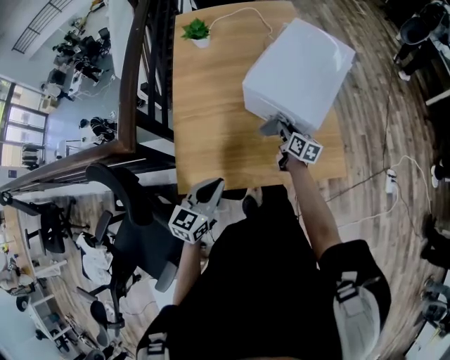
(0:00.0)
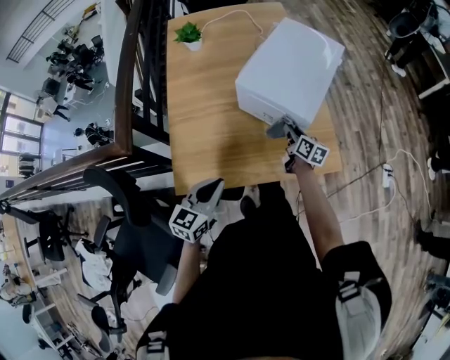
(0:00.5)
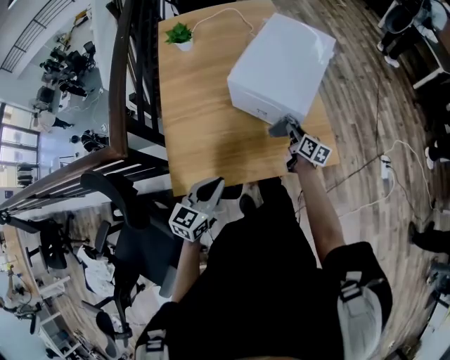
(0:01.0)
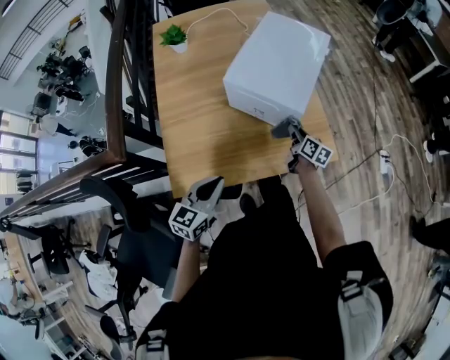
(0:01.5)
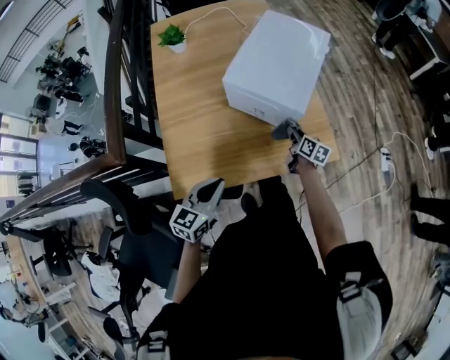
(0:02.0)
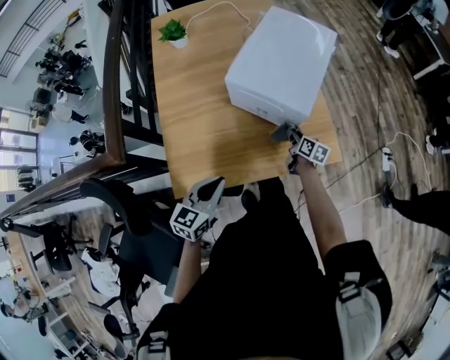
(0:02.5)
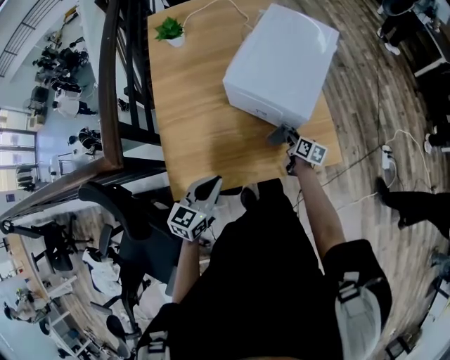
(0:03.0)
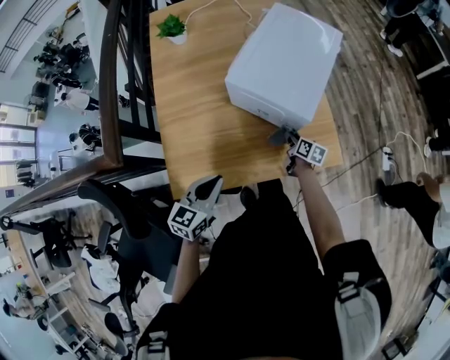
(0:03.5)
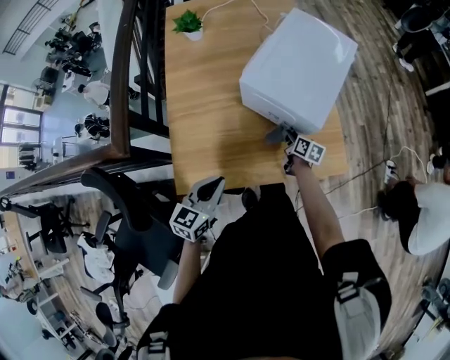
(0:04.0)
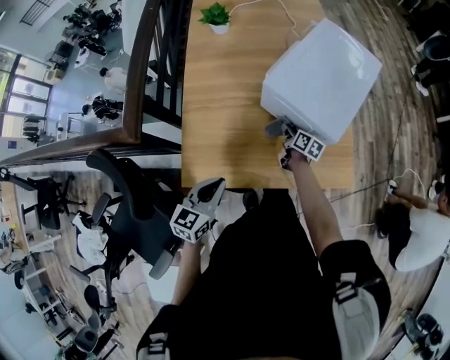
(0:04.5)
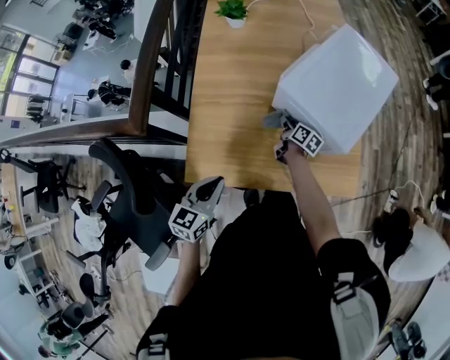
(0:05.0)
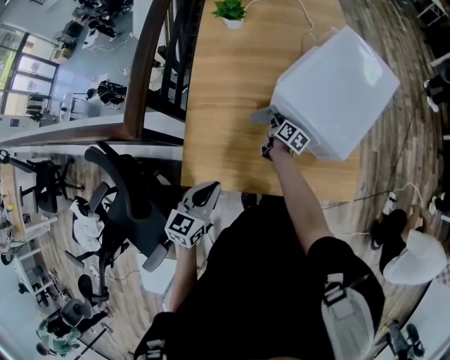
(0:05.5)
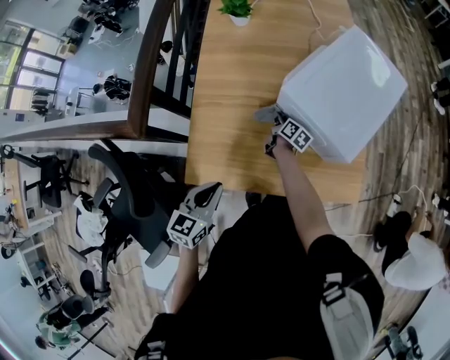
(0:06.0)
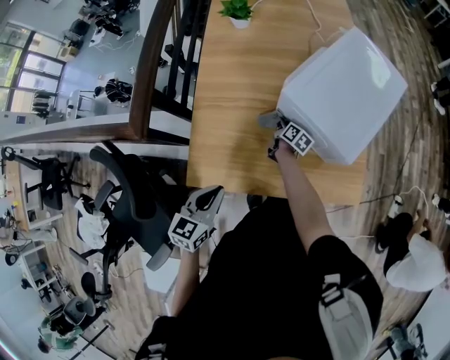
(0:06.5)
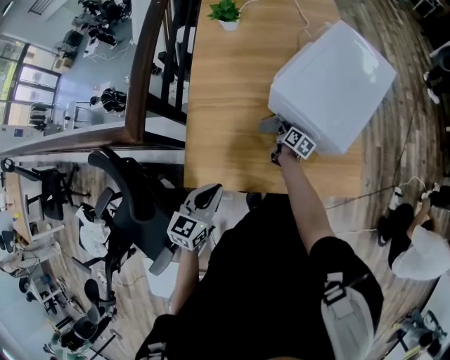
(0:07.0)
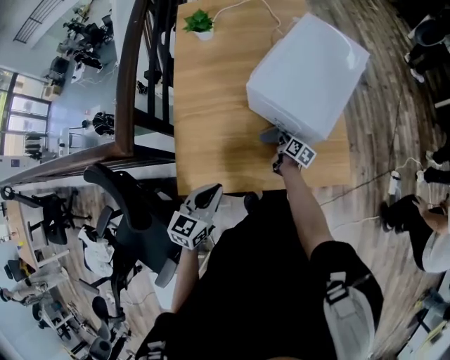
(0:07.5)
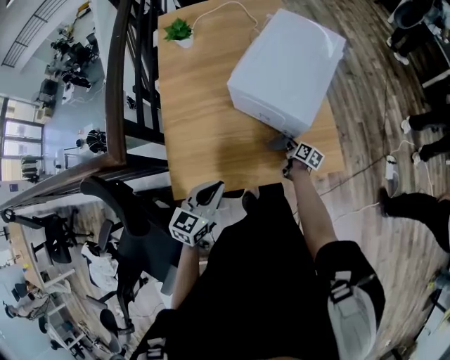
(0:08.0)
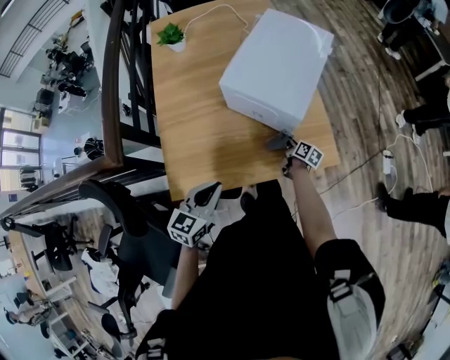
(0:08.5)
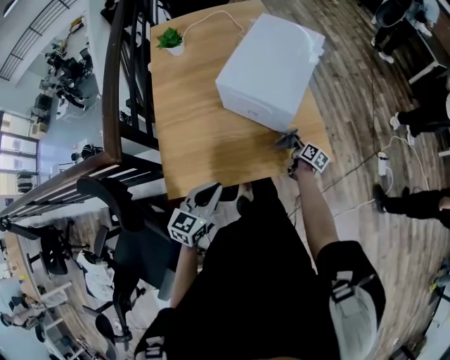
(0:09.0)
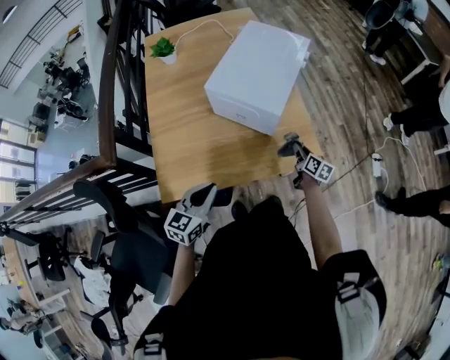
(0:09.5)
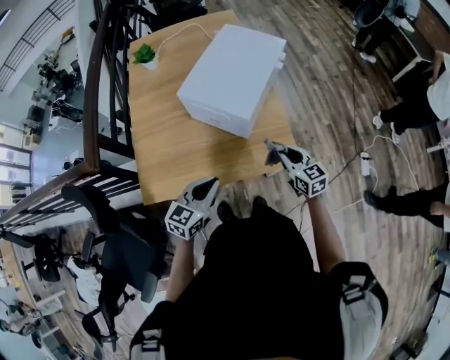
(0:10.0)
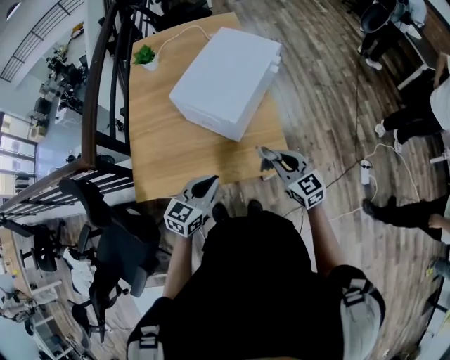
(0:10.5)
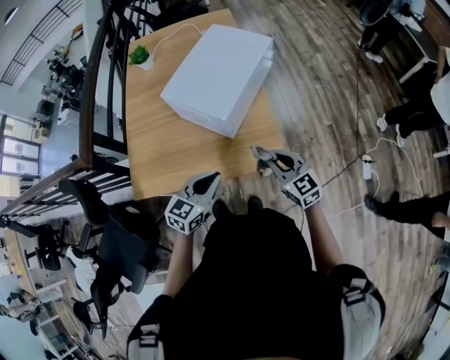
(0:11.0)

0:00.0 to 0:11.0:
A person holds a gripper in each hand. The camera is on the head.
0:00.0 to 0:02.0: The right gripper is displaced to the right by about 10 cm.
0:02.0 to 0:03.5: The right gripper is displaced downward by about 5 cm.
0:03.5 to 0:05.5: The left gripper goes some 5 cm to the left; the right gripper moves to the left and forward, roughly 25 cm.
0:05.5 to 0:07.5: The right gripper moves to the right and backward, about 15 cm.
0:07.5 to 0:09.0: The right gripper is displaced to the right by approximately 15 cm. The left gripper moves to the right, some 5 cm.
0:09.0 to 0:11.0: The left gripper heads to the right, covering some 25 cm; the right gripper shifts some 25 cm upward and backward, and twists some 60 degrees counterclockwise, seen from behind.

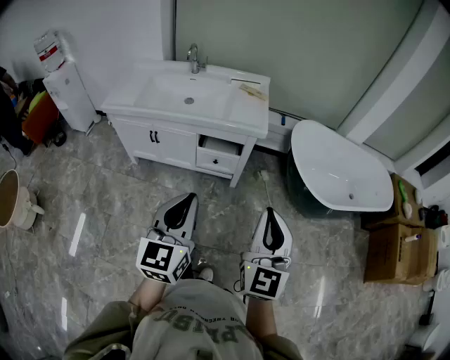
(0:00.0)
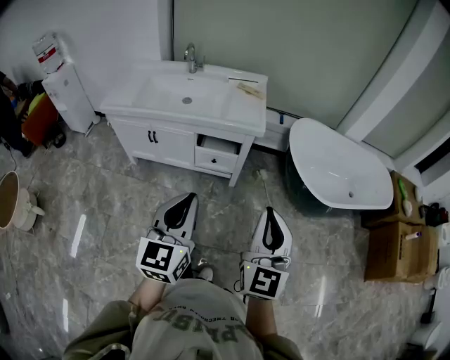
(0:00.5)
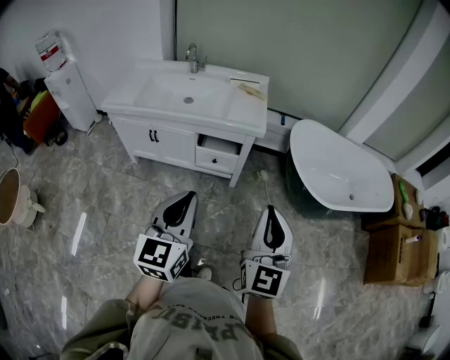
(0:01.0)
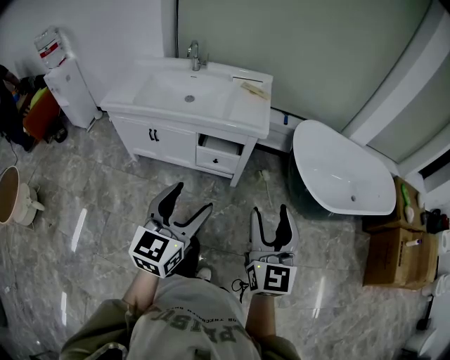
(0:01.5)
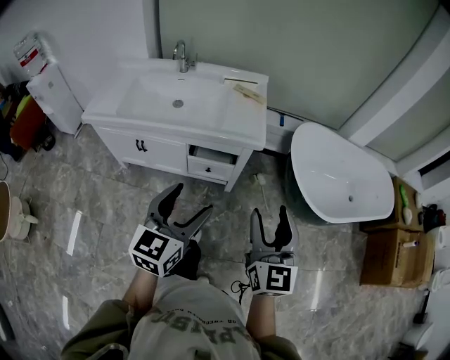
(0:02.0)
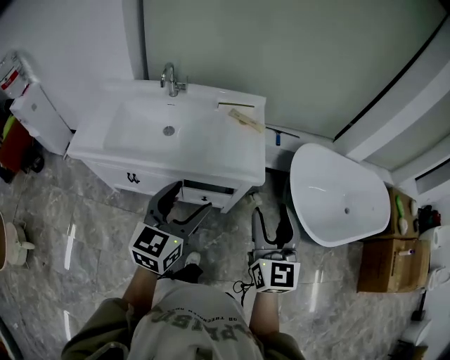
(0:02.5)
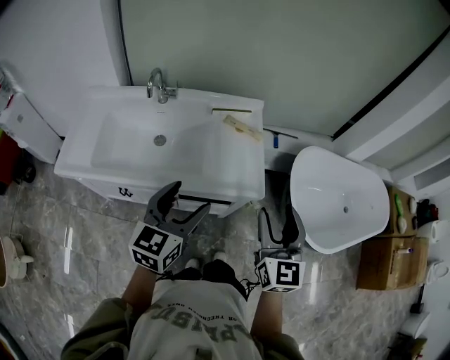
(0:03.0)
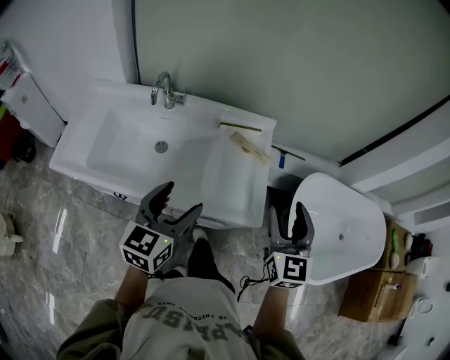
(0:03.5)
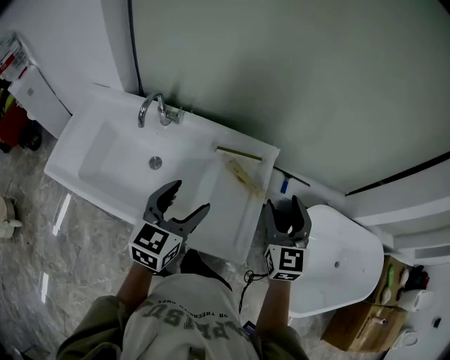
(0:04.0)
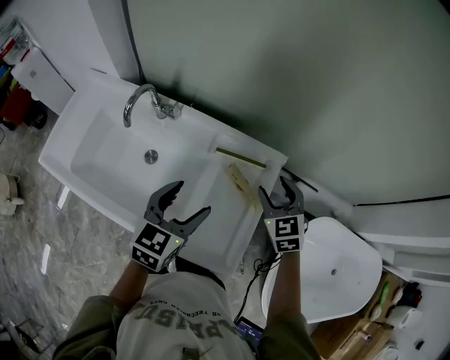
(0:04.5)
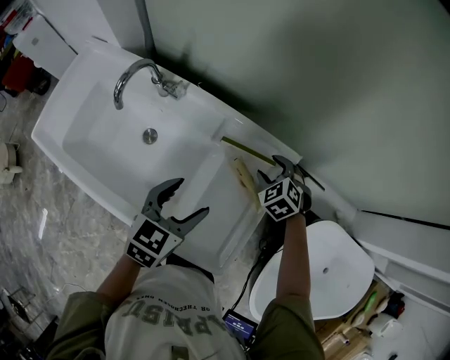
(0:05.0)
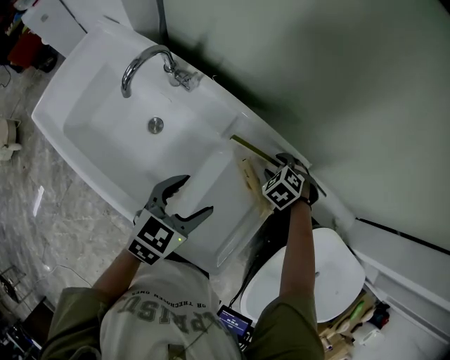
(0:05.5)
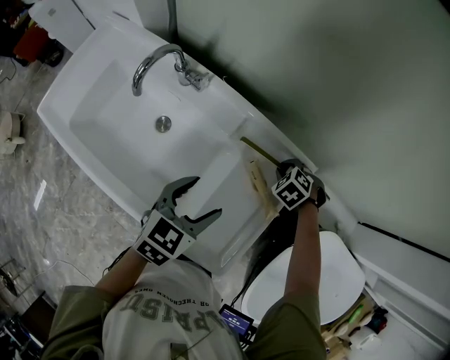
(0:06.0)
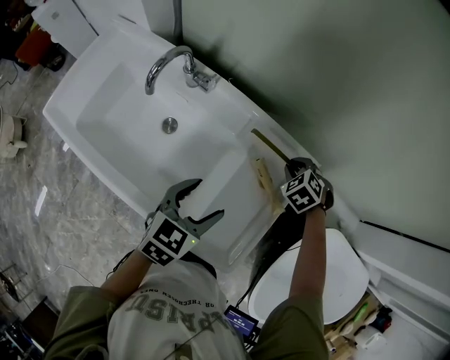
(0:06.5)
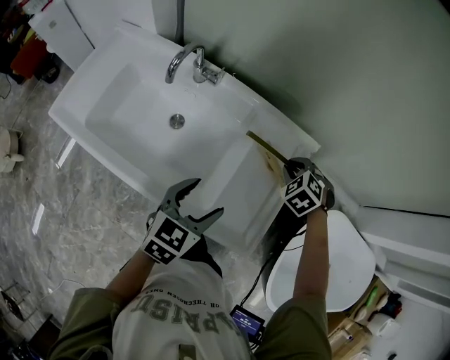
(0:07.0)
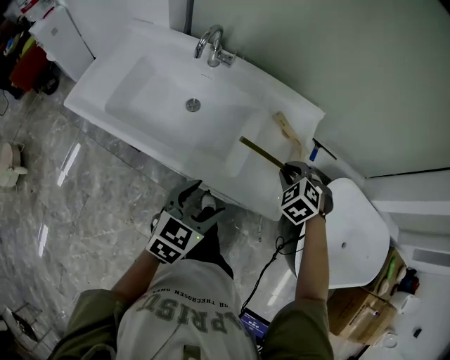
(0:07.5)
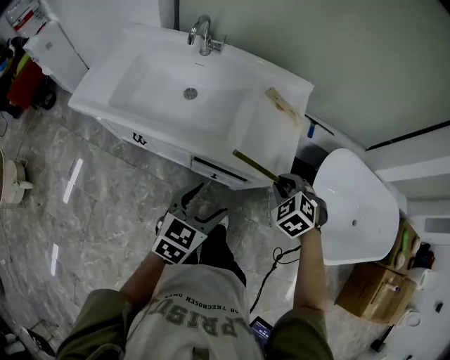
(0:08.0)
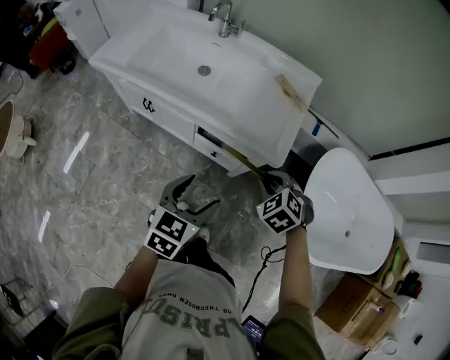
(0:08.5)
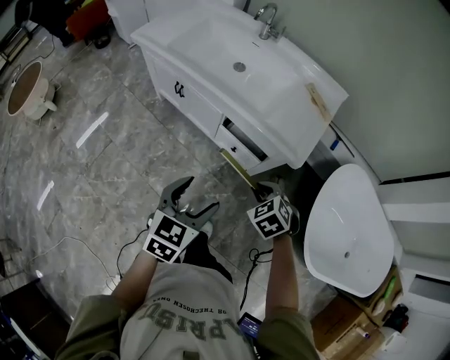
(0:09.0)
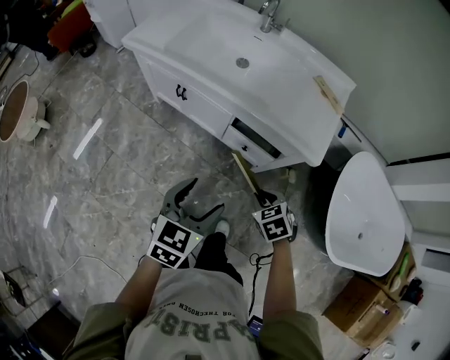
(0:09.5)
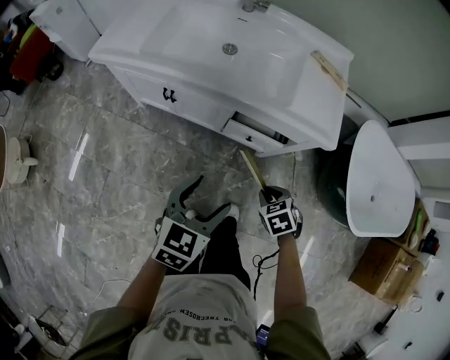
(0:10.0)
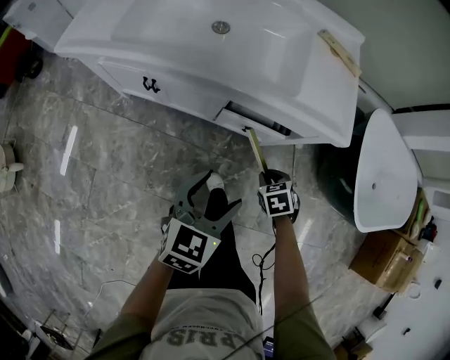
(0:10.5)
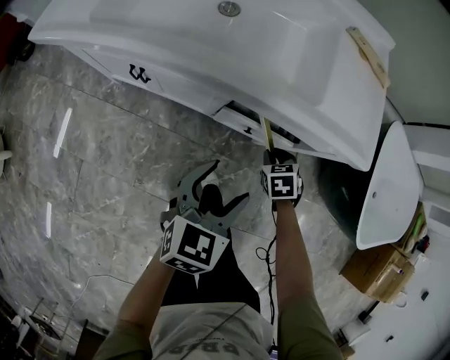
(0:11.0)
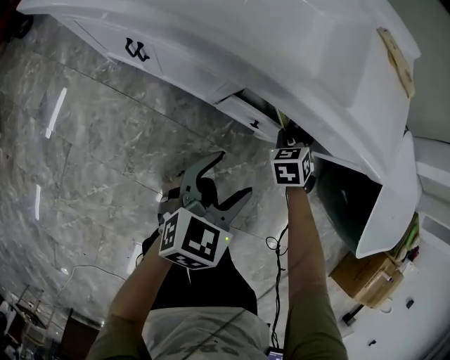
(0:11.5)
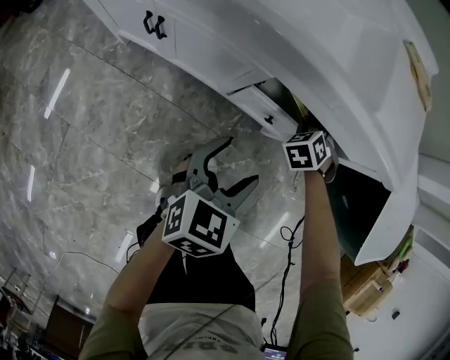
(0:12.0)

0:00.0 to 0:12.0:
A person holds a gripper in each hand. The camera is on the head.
0:00.0 to 0:02.0: Both grippers move forward, approximately 15 cm. The right gripper opens up, while the left gripper opens up.
0:02.0 to 0:04.0: Both grippers are carried forward, approximately 50 cm. The right gripper changes its angle by roughly 20 degrees.
0:04.0 to 0:06.0: The left gripper goes roughly 15 cm downward. The right gripper travels downward by some 30 cm, angles its fingers downward, by approximately 60 degrees, and closes up.
0:06.0 to 0:08.0: The right gripper ends up some 50 cm from where it was, and turns by approximately 20 degrees. Meanwhile the left gripper ends up approximately 35 cm from where it was.
0:08.0 to 0:10.0: The left gripper shifts by some 20 cm. The right gripper ends up approximately 30 cm from where it was, and changes its angle by roughly 30 degrees.
0:10.0 to 0:12.0: The right gripper ends up roughly 35 cm from where it was, and rotates approximately 30 degrees; the left gripper travels downward by about 25 cm.

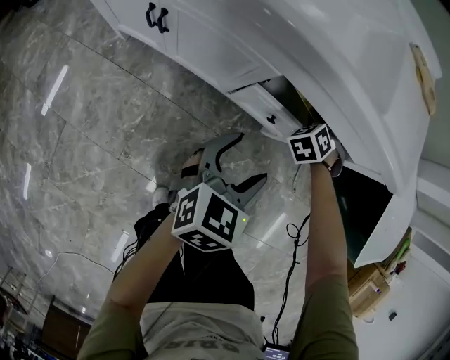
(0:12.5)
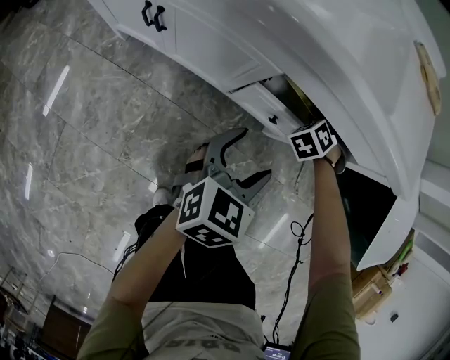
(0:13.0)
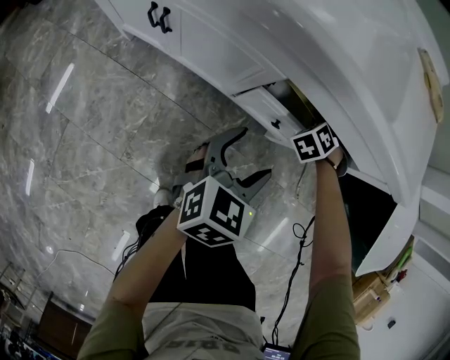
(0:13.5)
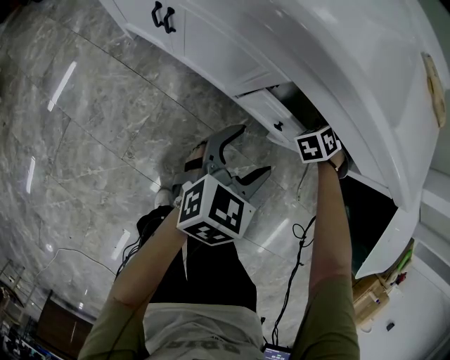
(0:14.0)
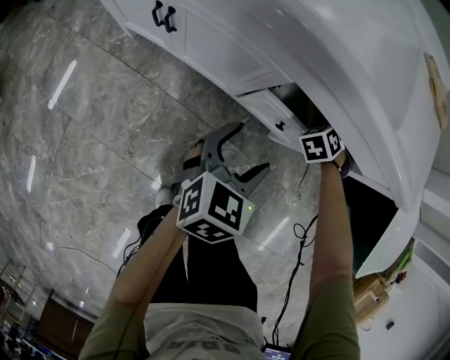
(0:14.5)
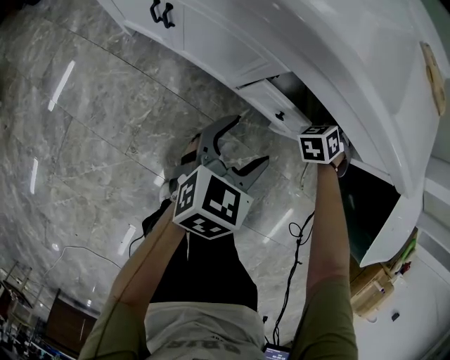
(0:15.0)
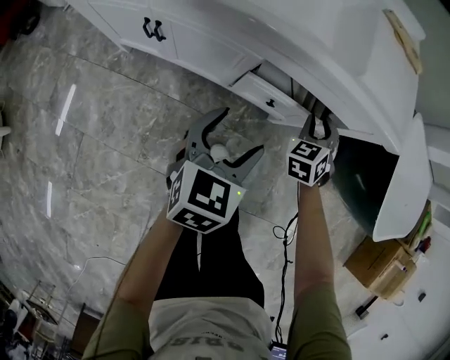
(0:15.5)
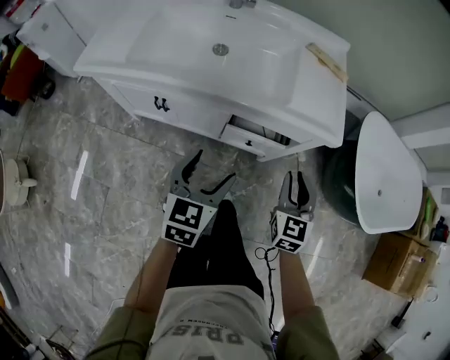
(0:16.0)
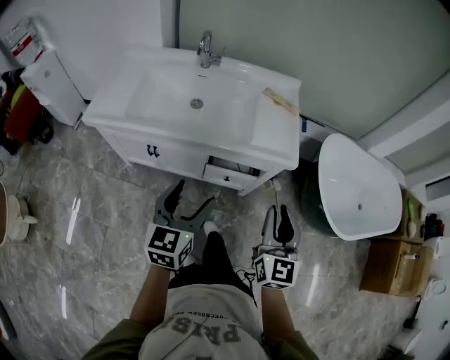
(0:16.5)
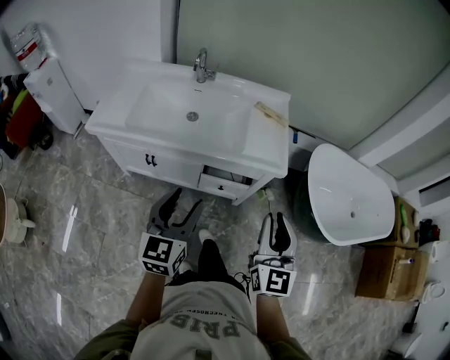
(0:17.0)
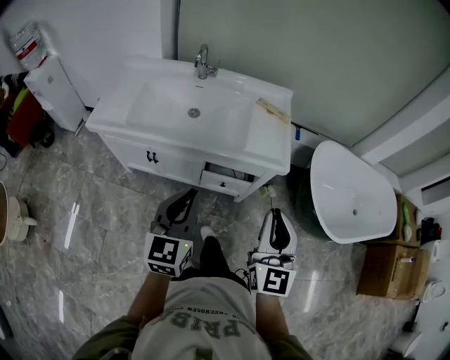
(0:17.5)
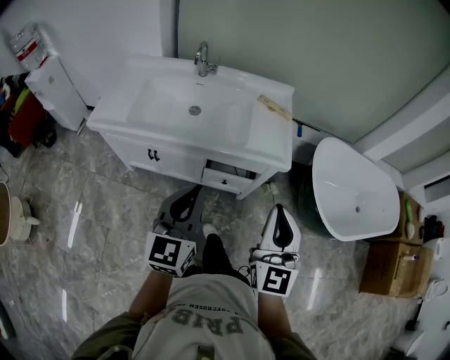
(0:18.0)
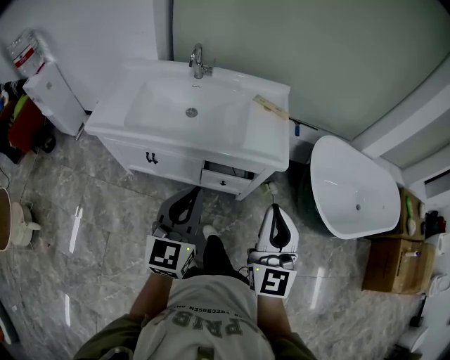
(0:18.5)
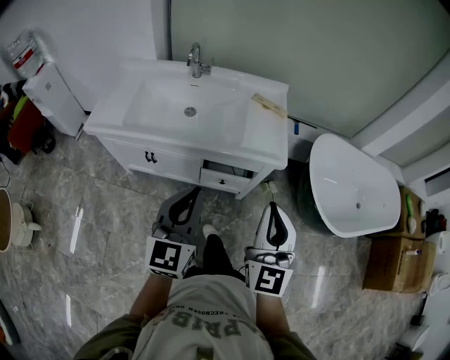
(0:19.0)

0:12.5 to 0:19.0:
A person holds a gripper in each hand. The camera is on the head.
0:12.5 to 0:14.5: The grippers move only a little.
0:14.5 to 0:17.0: The left gripper shifts some 40 cm upward, and rotates roughly 30 degrees. Meanwhile the right gripper heads upward and backward, covering approximately 70 cm, and points its fingers roughly 60 degrees further upward.
0:17.0 to 0:19.0: The left gripper moves some 5 cm, and closes up.
